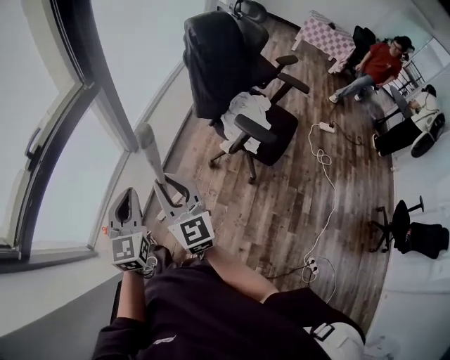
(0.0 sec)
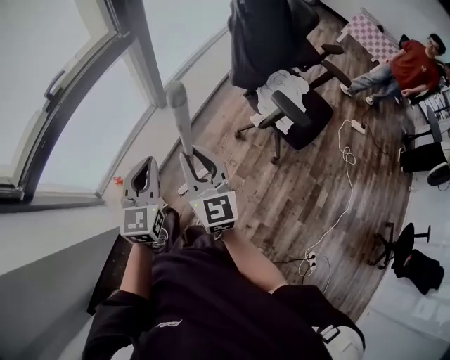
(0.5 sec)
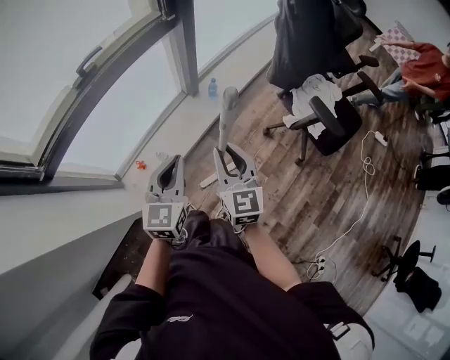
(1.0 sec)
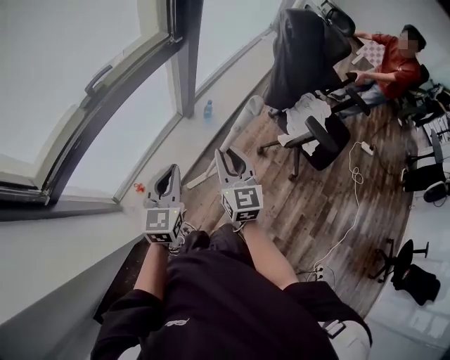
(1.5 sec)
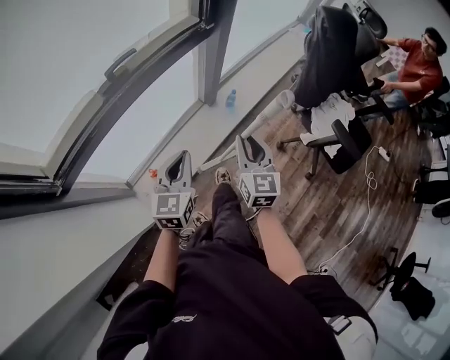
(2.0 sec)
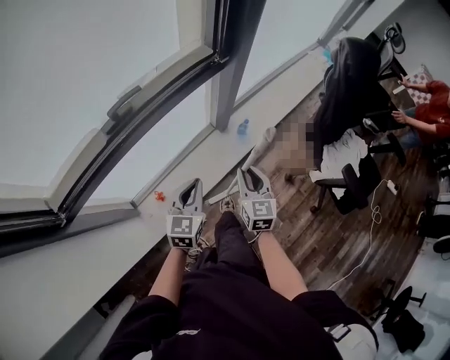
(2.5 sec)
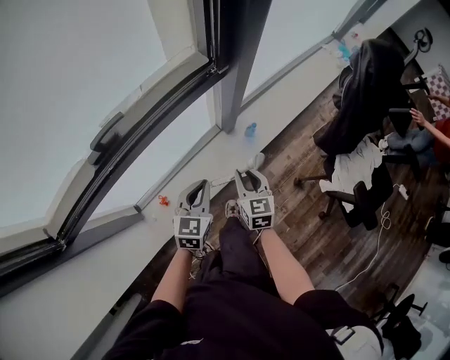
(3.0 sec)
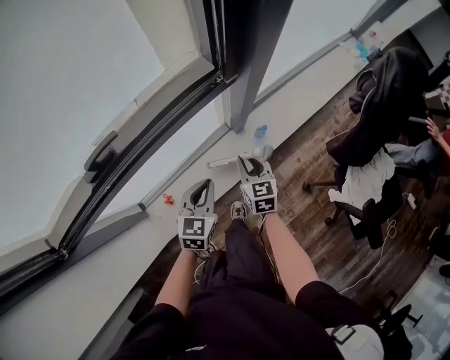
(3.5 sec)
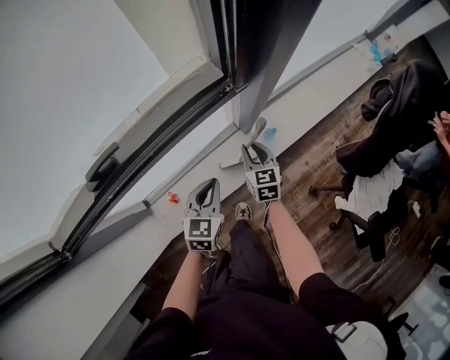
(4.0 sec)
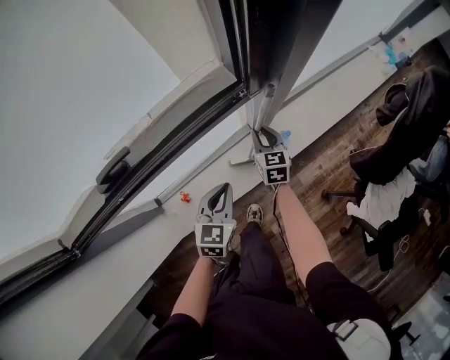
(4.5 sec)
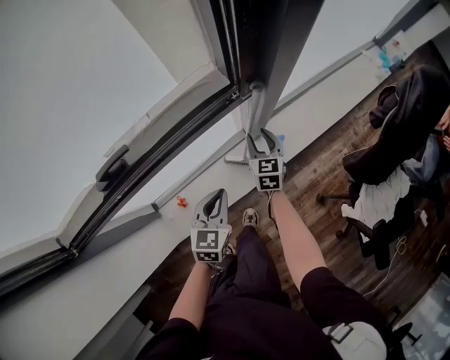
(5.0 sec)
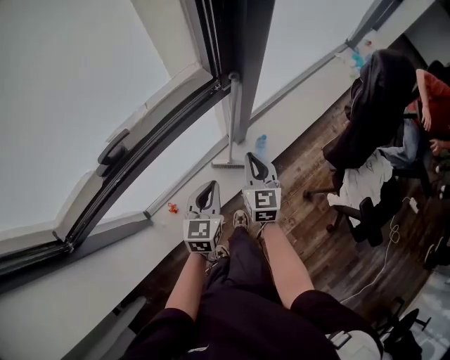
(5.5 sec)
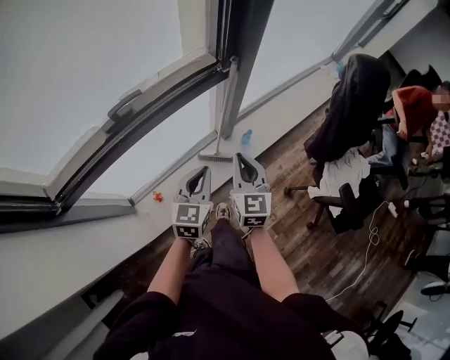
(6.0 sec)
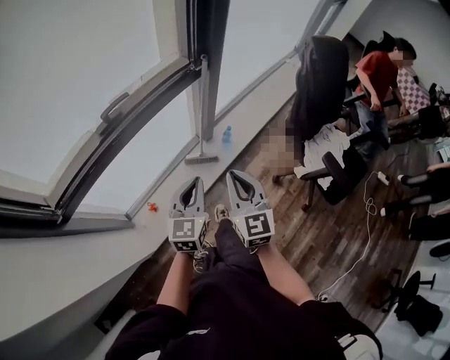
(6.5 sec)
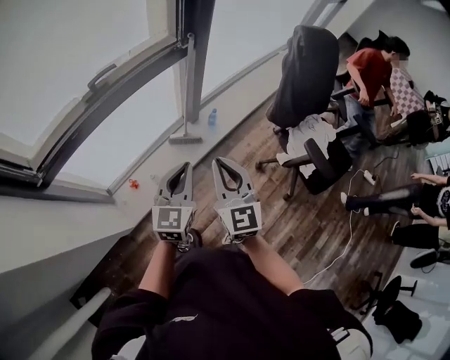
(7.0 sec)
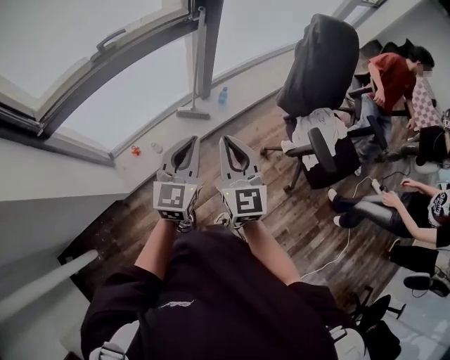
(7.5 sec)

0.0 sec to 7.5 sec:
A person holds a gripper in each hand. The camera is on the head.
0.0 sec to 2.0 sec: The left gripper heads to the left and downward, covering approximately 20 cm. Meanwhile the right gripper moves forward, to the left and downward, approximately 20 cm.
2.0 sec to 4.0 sec: Both grippers travel together forward and downward, roughly 35 cm. The right gripper rotates roughly 30 degrees.
4.0 sec to 5.5 sec: The left gripper heads upward, covering roughly 5 cm. Meanwhile the right gripper goes approximately 15 cm upward and backward.
5.5 sec to 7.5 sec: Both grippers travel together backward and upward, roughly 40 cm.

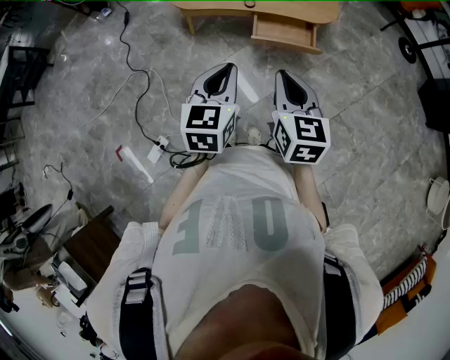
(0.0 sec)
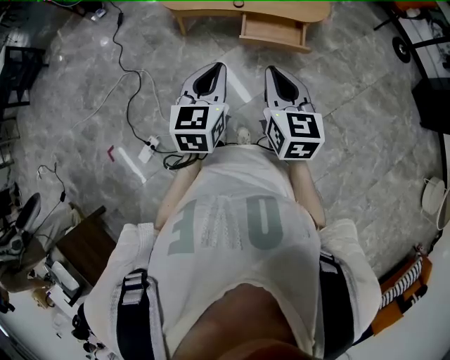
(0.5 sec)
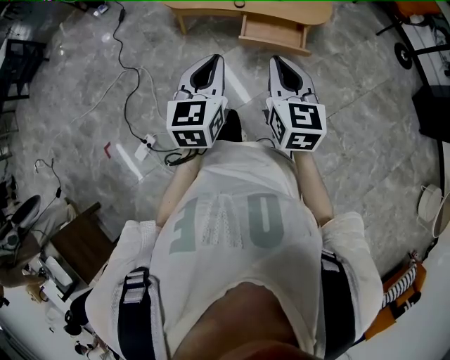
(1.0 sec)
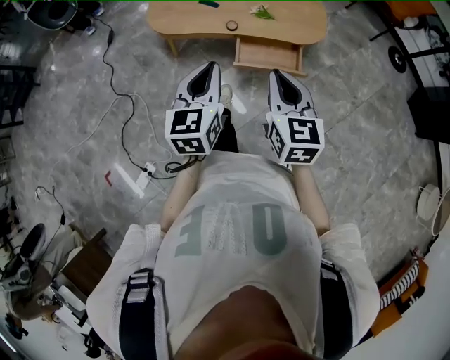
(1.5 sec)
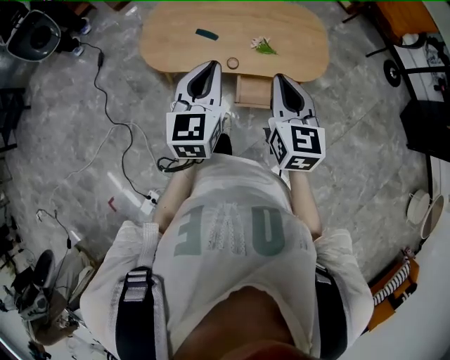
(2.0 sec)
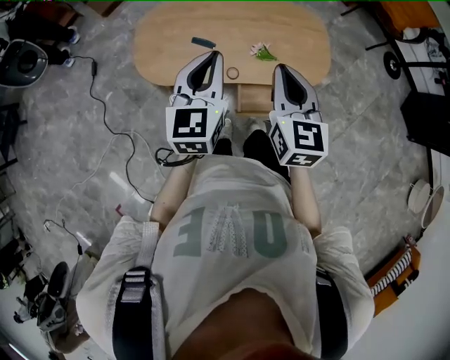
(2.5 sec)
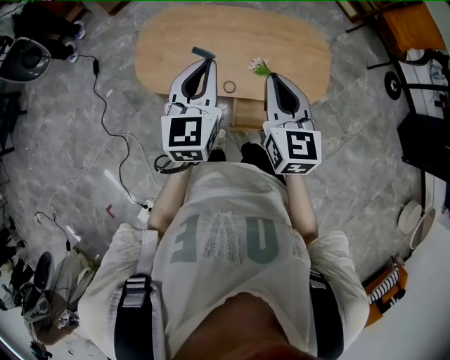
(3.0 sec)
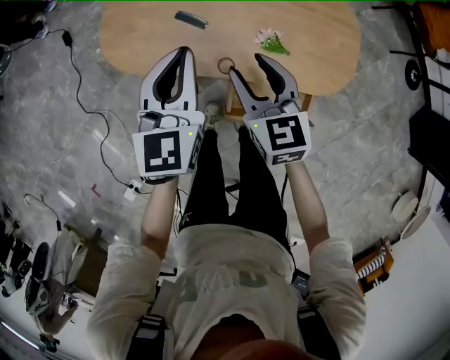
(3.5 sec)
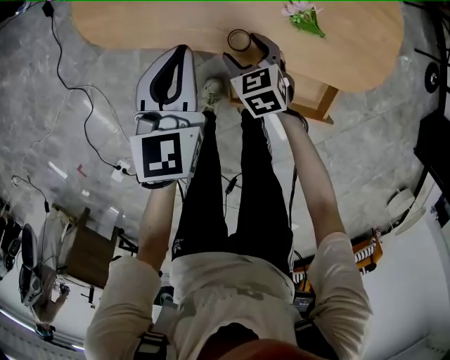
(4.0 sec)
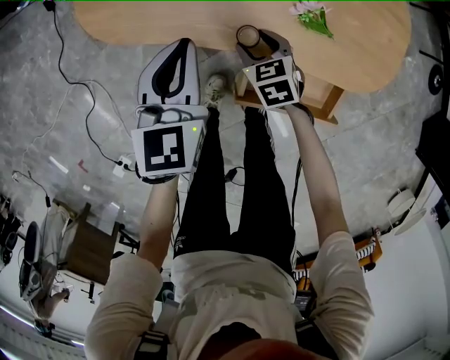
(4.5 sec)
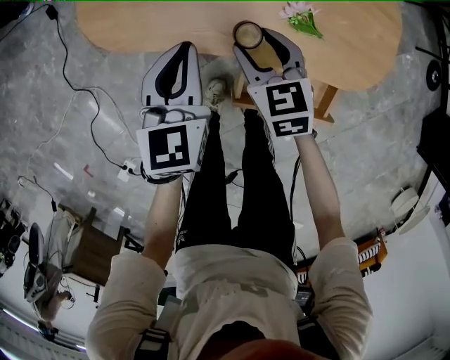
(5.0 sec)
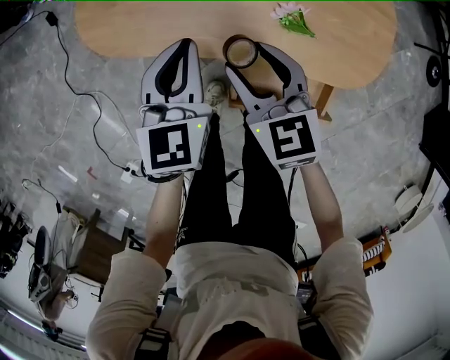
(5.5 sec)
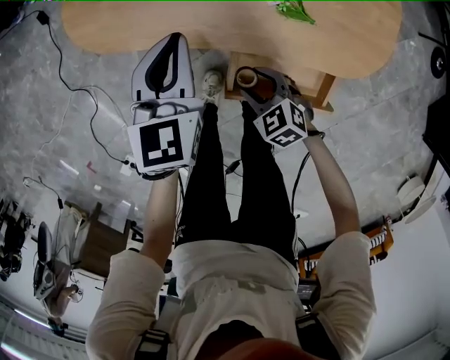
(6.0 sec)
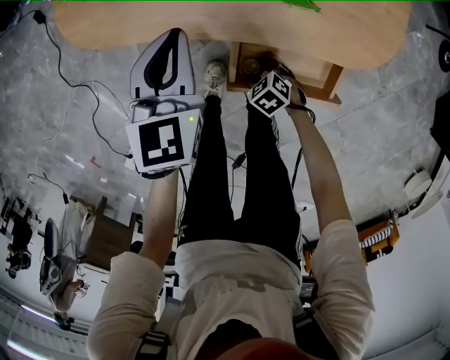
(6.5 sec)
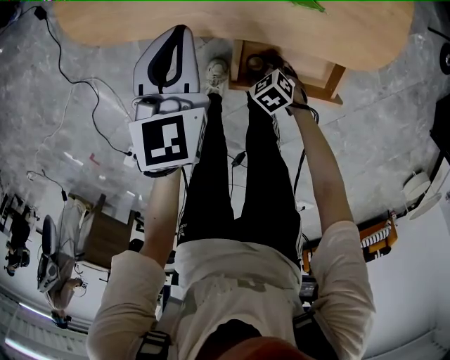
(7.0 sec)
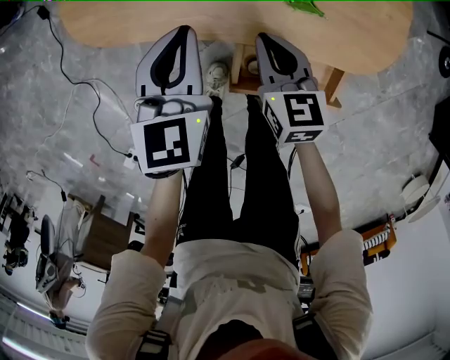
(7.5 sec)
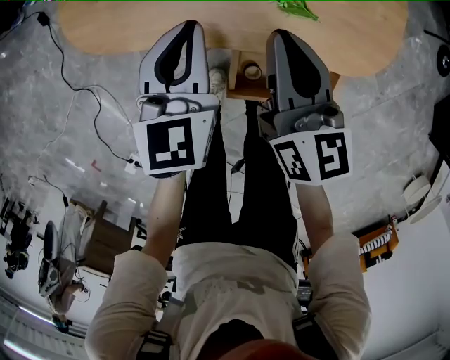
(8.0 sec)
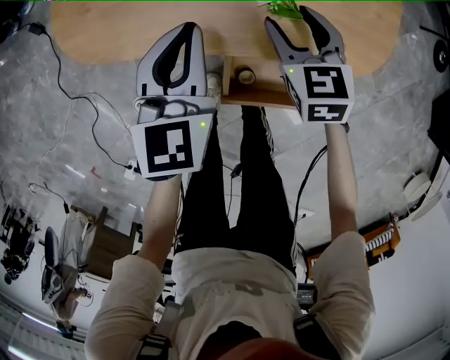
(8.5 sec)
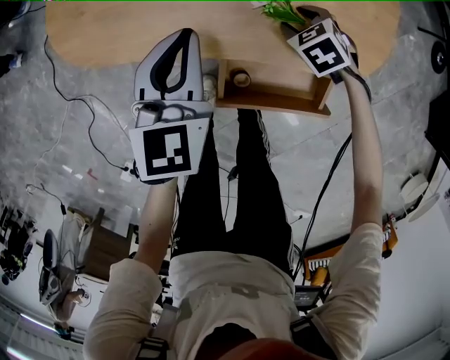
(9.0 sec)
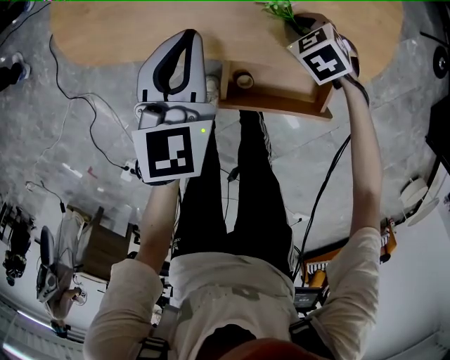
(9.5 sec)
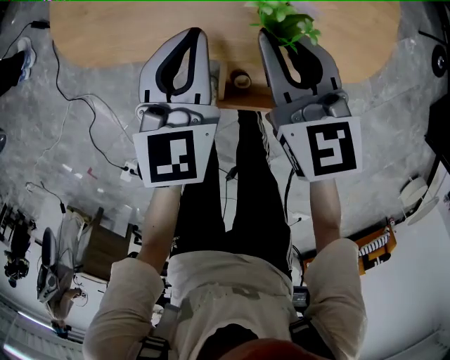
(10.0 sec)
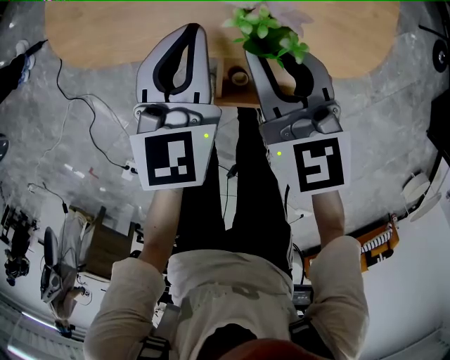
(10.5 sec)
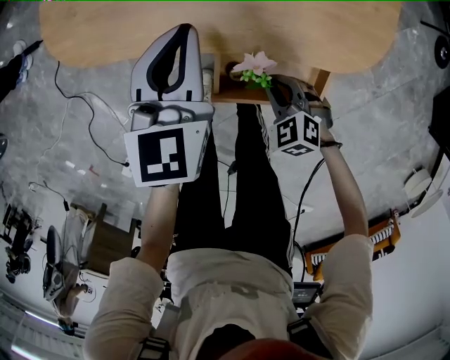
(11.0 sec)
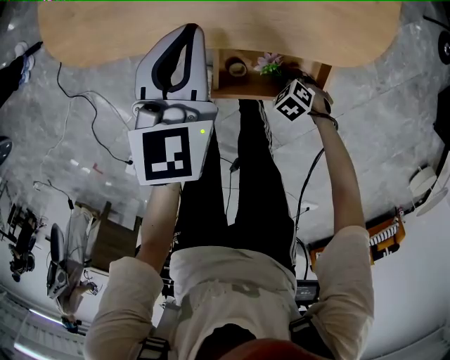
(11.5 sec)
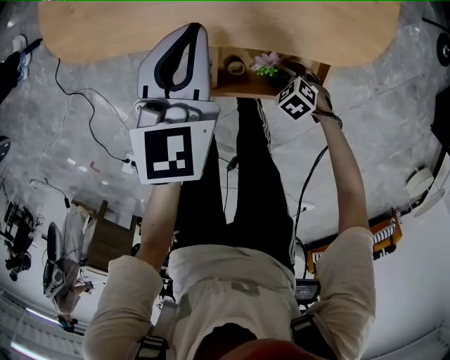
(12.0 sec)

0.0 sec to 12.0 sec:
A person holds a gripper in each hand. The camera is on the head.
0.0 sec to 2.0 sec: Both grippers travel together forward, some 40 cm.
2.0 sec to 4.0 sec: The right gripper goes roughly 50 cm downward, tips its fingers downward by about 30 degrees, and opens up. Meanwhile the left gripper shifts approximately 30 cm downward.
4.0 sec to 6.0 sec: The right gripper heads backward, covering some 10 cm, and travels upward and back again, approximately 20 cm each way.
6.0 sec to 8.0 sec: The right gripper goes some 20 cm upward, tilts its fingers some 40 degrees upward, and closes up.
8.0 sec to 10.0 sec: The right gripper moves some 25 cm downward and comes back, rotates approximately 20 degrees, and opens and closes again.
10.0 sec to 12.0 sec: The right gripper goes some 30 cm downward, angles its fingers downward, by about 50 degrees, and opens up.

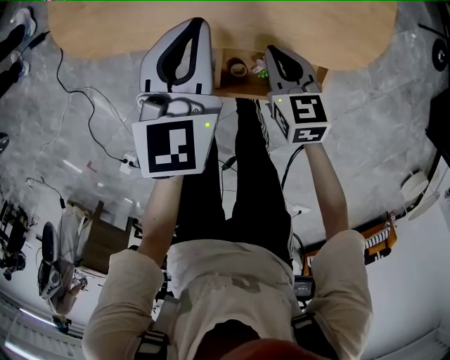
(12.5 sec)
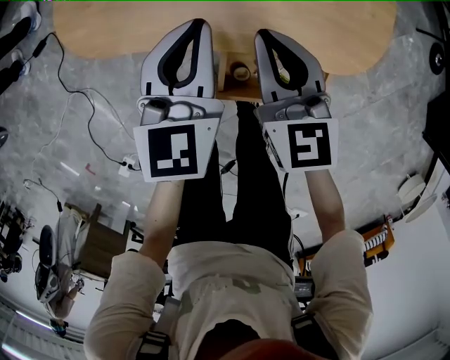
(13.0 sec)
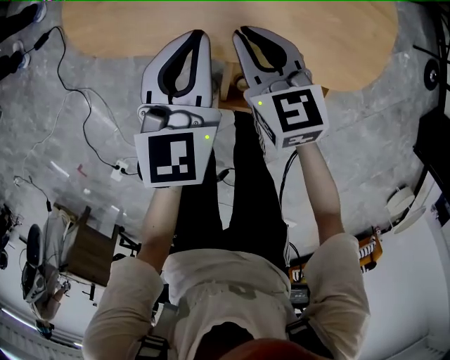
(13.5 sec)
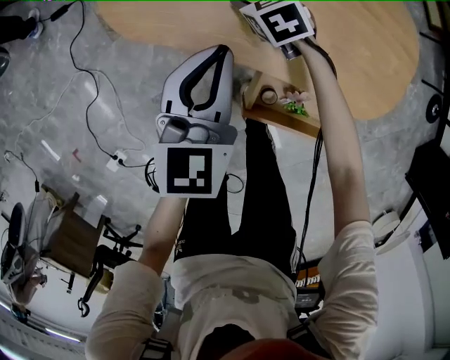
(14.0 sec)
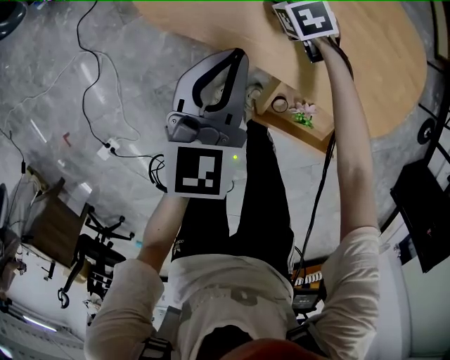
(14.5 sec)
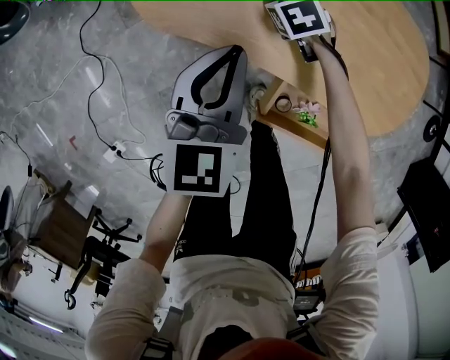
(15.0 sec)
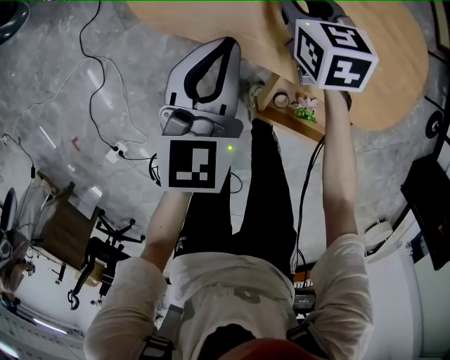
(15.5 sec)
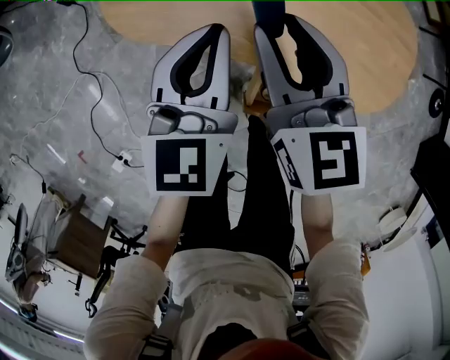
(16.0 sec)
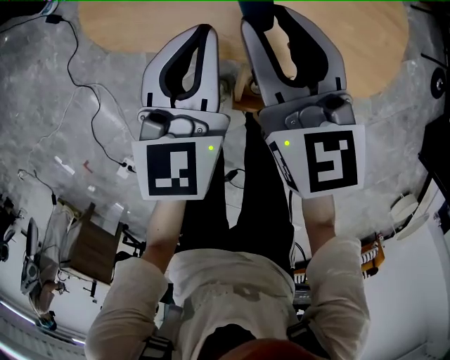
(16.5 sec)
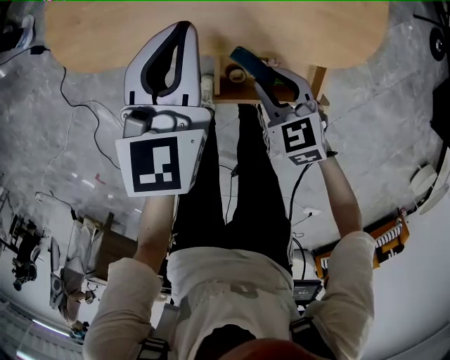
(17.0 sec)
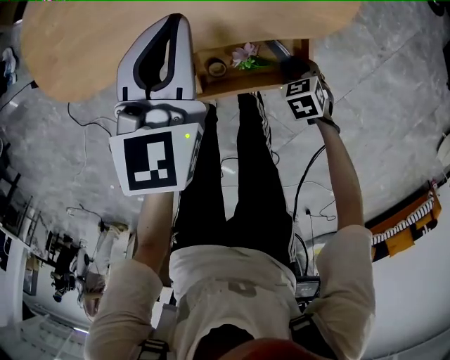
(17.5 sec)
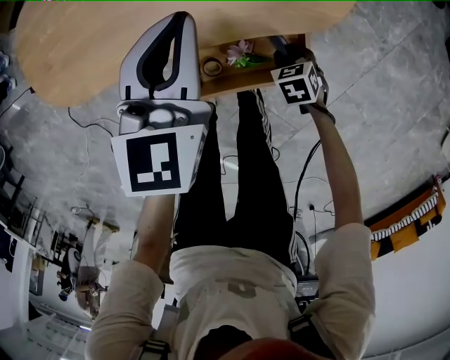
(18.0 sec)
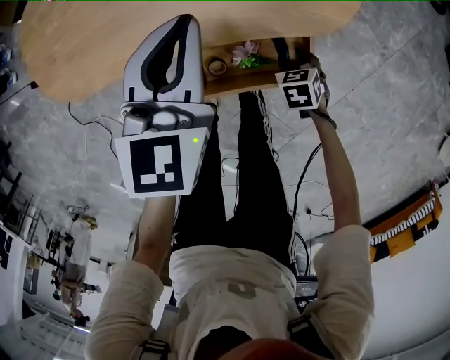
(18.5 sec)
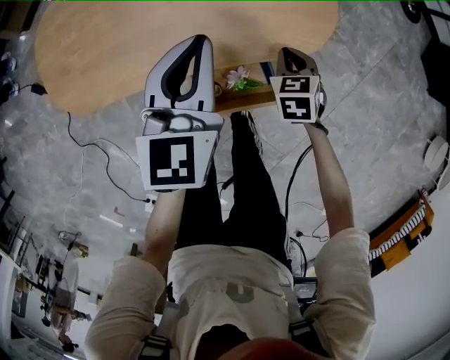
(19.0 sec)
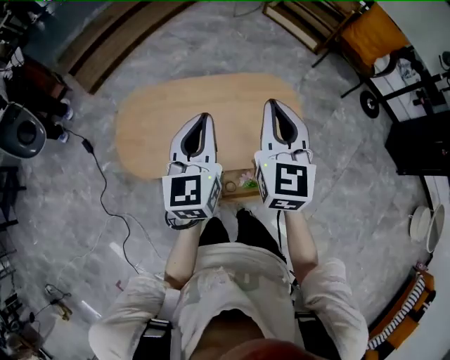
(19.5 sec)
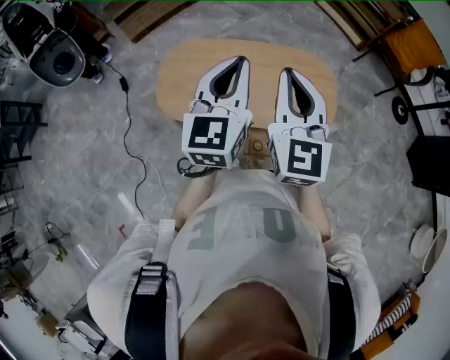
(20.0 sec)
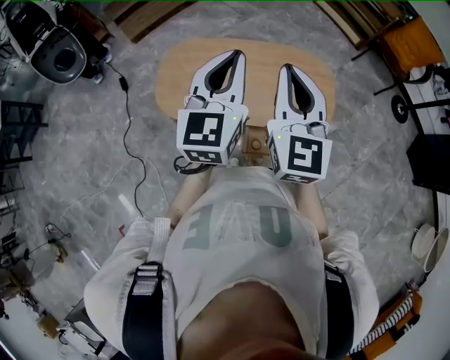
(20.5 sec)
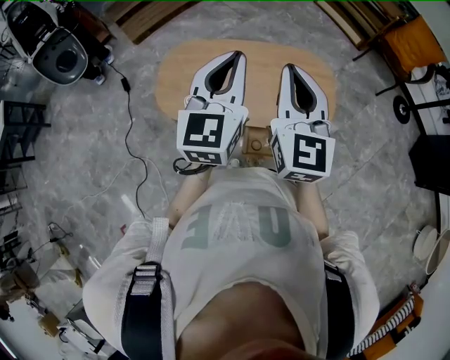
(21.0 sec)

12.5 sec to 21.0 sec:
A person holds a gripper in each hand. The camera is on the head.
12.5 sec to 14.5 sec: The right gripper moves forward and to the left, approximately 30 cm, turns by about 40 degrees, and opens, while the left gripper shifts approximately 15 cm to the left.
14.5 sec to 16.5 sec: The right gripper goes roughly 30 cm upward and backward, and points its fingers about 40 degrees further upward, while the left gripper moves to the right, roughly 10 cm.
16.5 sec to 19.0 sec: The left gripper moves about 20 cm, and changes its angle by about 20 degrees; the right gripper shifts by some 35 cm, angles its fingers downward, by roughly 40 degrees, and closes.
19.0 sec to 21.0 sec: The right gripper shifts approximately 60 cm upward, and tips its fingers upward by about 60 degrees. Meanwhile the left gripper goes some 35 cm upward, and rotates roughly 20 degrees.
